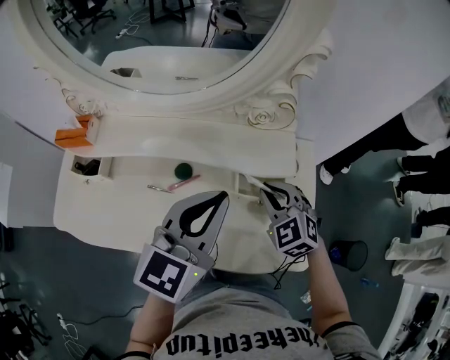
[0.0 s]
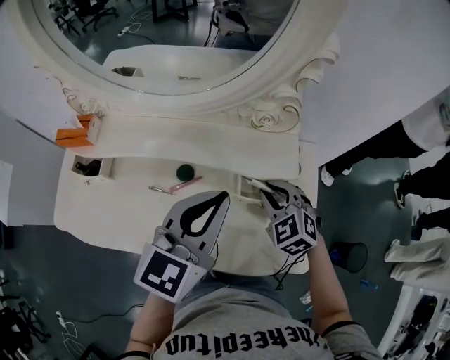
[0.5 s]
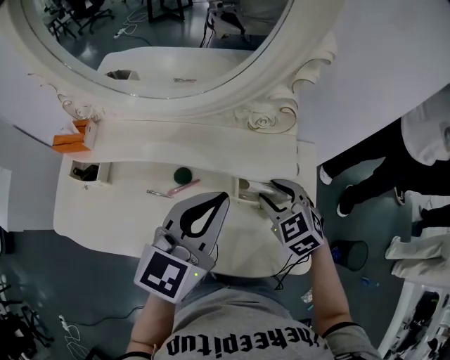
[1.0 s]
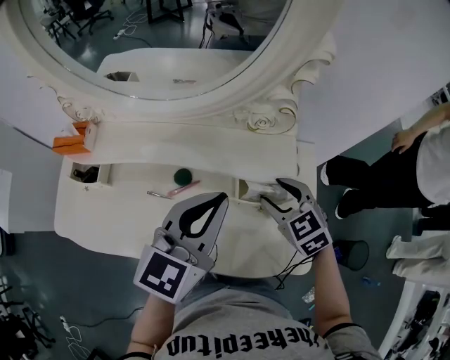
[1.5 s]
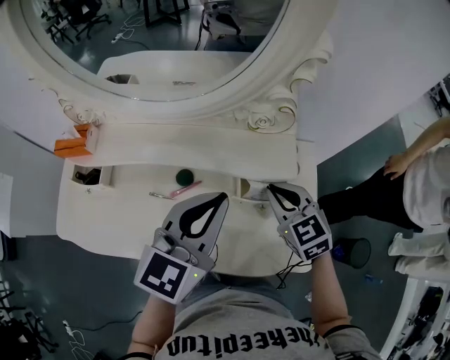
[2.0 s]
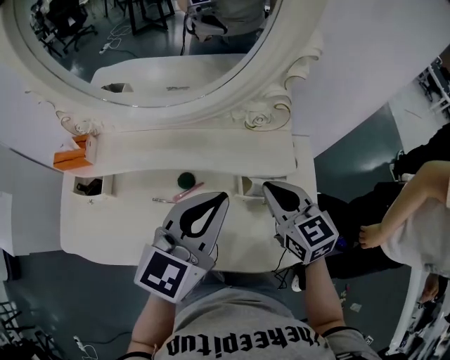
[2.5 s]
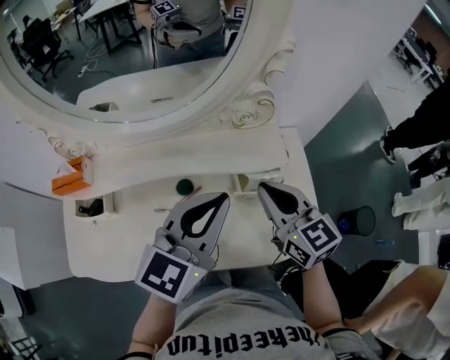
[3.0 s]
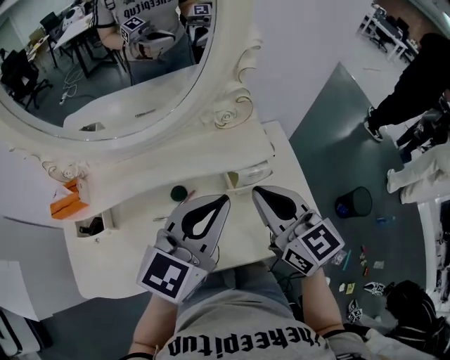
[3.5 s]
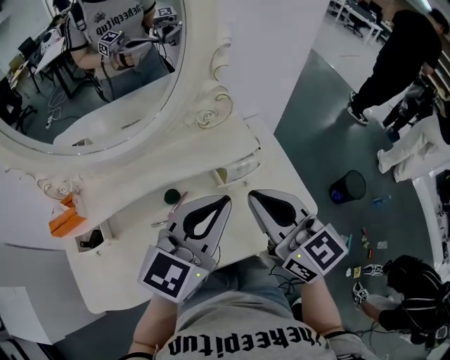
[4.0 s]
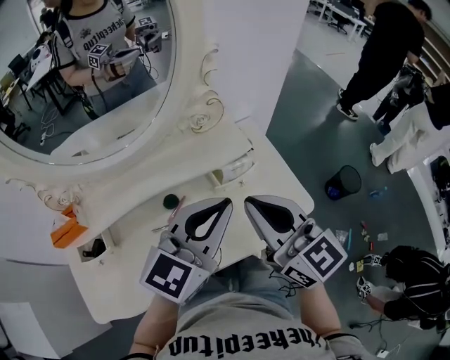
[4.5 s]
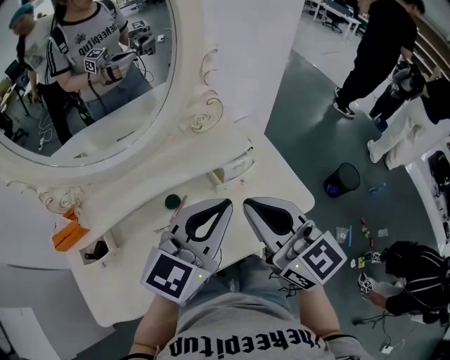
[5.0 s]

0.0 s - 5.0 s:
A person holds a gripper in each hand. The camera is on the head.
0.0 s - 2.5 s: The right gripper is displaced upward by approximately 5 cm, rotates some 40 degrees, and opens and closes again.
2.5 s - 5.0 s: The left gripper shifts by about 10 cm, and turns by about 30 degrees. Meanwhile the right gripper changes place by about 20 cm, and swivels some 30 degrees.

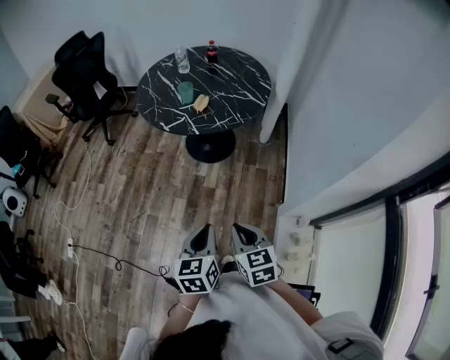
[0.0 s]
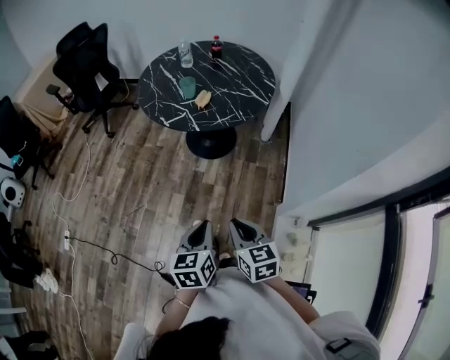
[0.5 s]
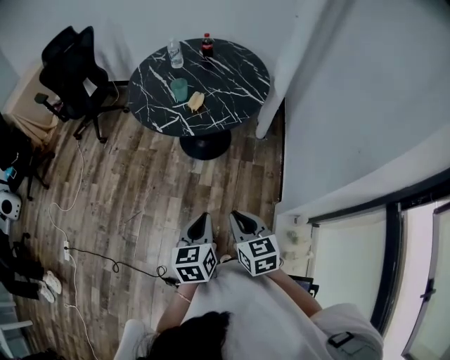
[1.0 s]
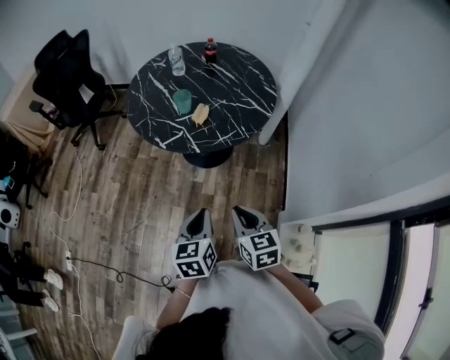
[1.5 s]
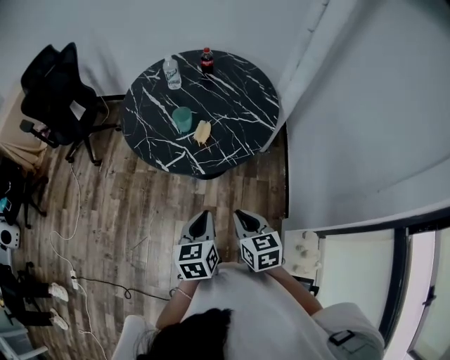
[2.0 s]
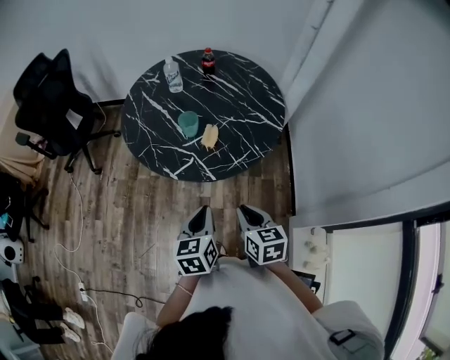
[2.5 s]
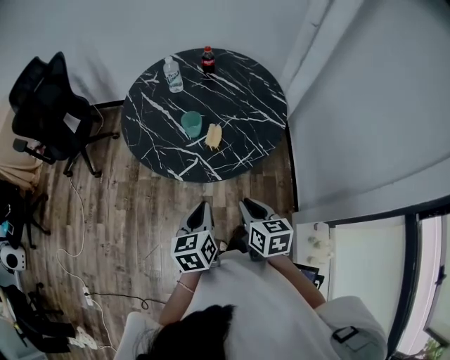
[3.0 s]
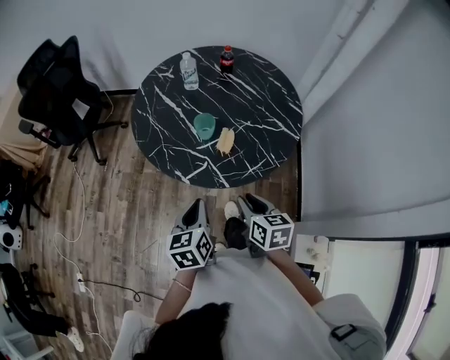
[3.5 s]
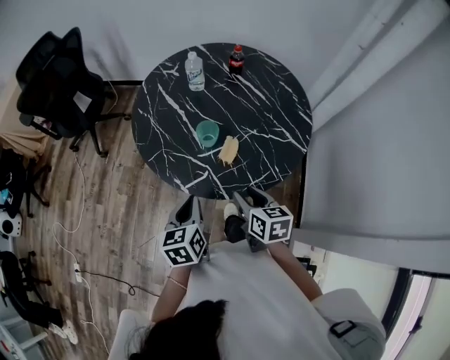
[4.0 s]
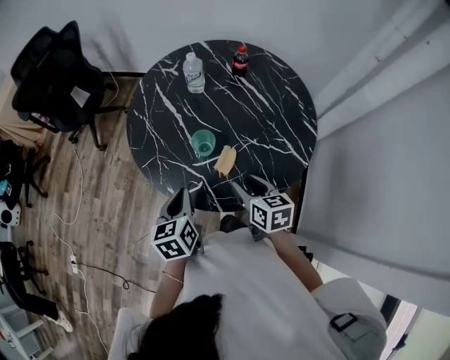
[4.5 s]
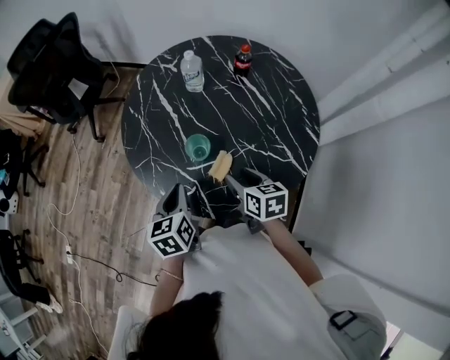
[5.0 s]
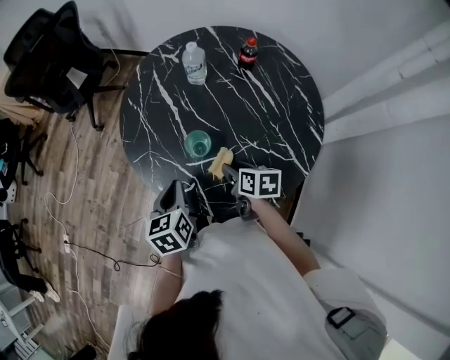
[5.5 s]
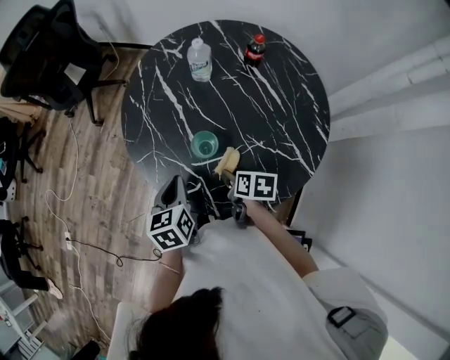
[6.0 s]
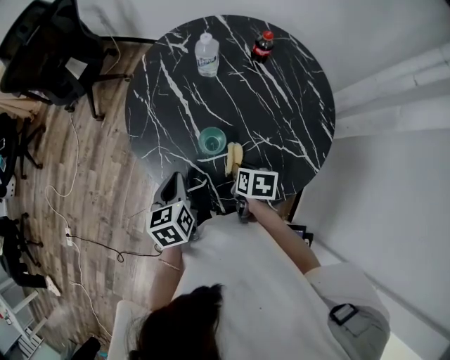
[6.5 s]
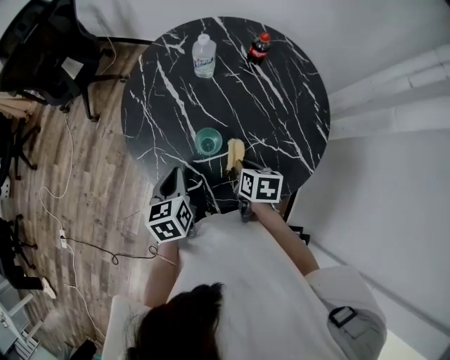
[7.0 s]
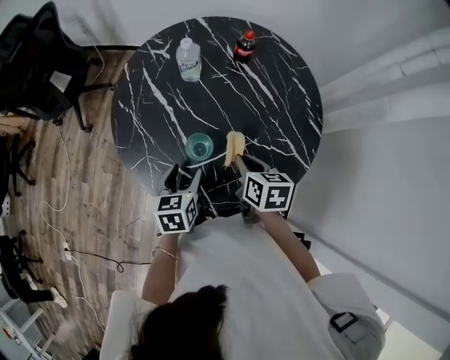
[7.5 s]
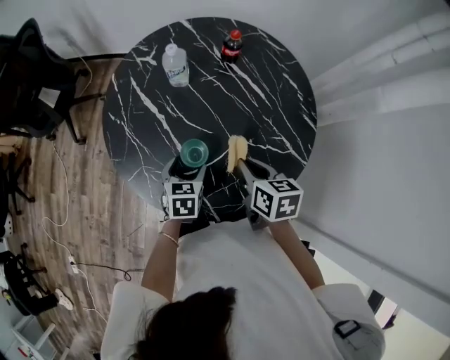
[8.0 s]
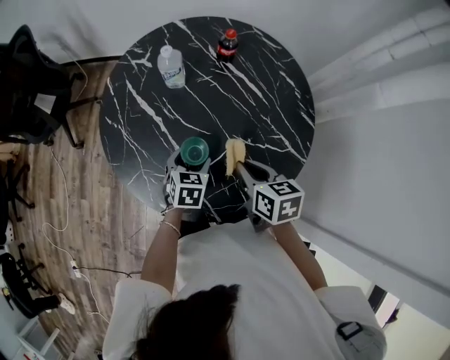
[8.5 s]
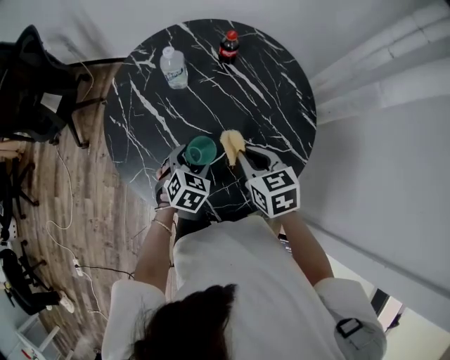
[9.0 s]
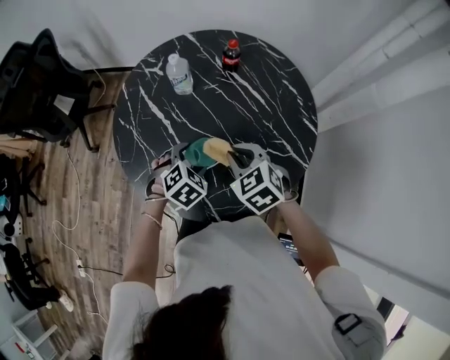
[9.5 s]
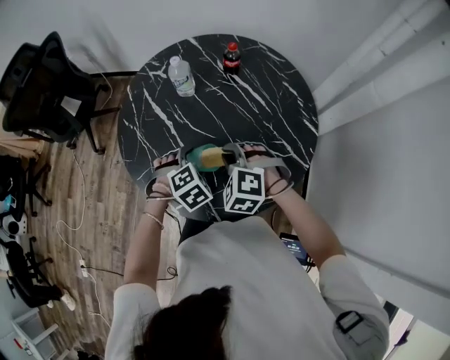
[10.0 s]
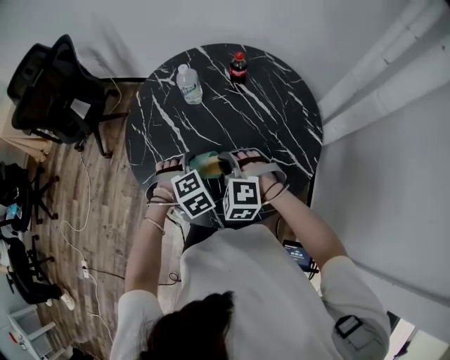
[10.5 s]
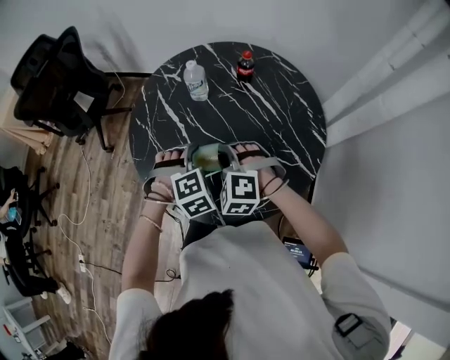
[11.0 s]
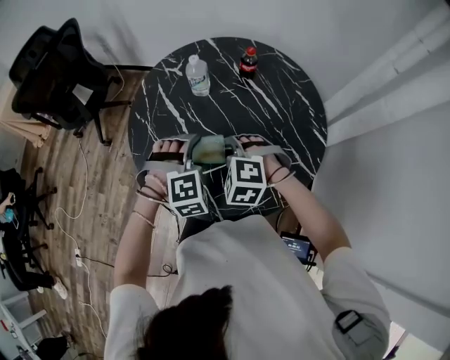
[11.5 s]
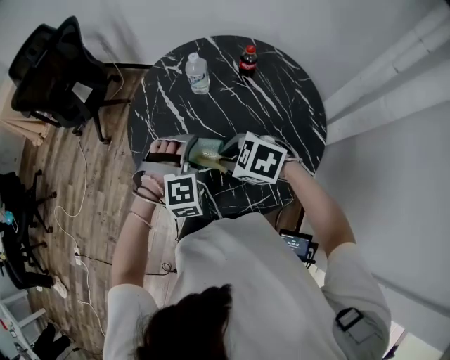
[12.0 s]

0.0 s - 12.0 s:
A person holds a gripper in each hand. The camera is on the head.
0.0 s - 2.0 s: Both grippers move forward, about 25 cm.
2.0 s - 4.0 s: The right gripper travels forward by approximately 20 cm, and opens up. The left gripper moves forward and to the left, approximately 20 cm.
4.0 s - 6.0 s: The left gripper goes some 10 cm forward. Meanwhile the right gripper moves forward and downward, about 15 cm, and changes its angle by roughly 30 degrees.
6.0 s - 8.0 s: The left gripper travels downward, to the right and forward by about 15 cm, turns by about 30 degrees, and opens. The right gripper travels upward by some 10 cm, changes its angle by about 20 degrees, and closes its fingers.
8.0 s - 10.0 s: The right gripper ends up some 5 cm from where it was, and twists approximately 80 degrees counterclockwise, seen from behind. The left gripper rolls clockwise, seen from behind, by some 50 degrees.
10.0 s - 12.0 s: The left gripper heads upward, covering some 5 cm, and turns by approximately 30 degrees, while the right gripper shifts by about 5 cm, and swivels about 40 degrees.

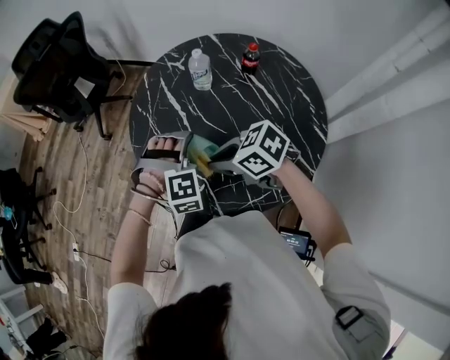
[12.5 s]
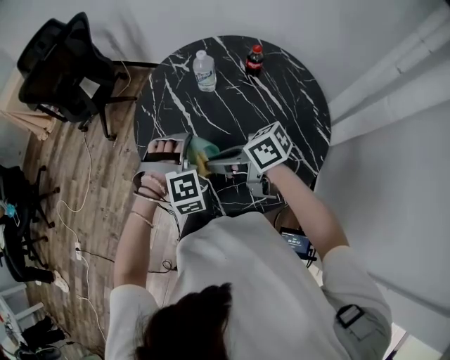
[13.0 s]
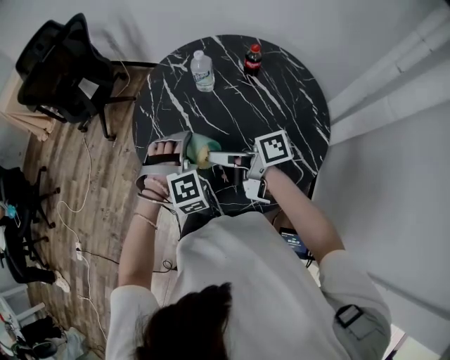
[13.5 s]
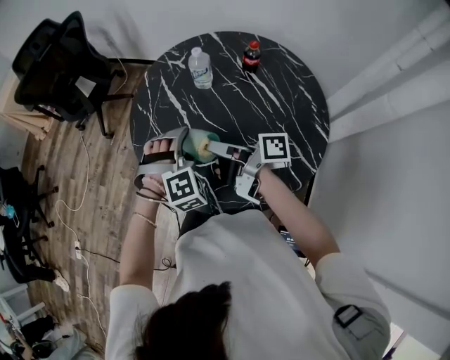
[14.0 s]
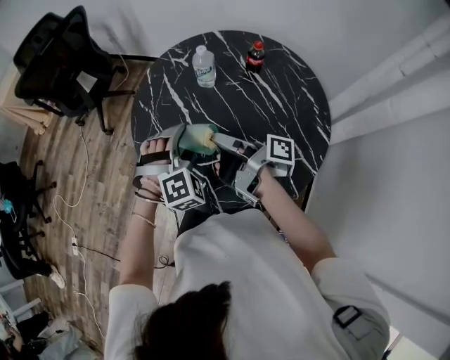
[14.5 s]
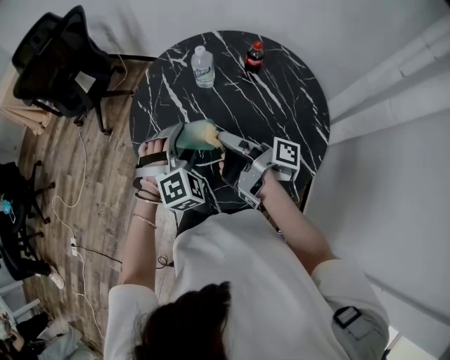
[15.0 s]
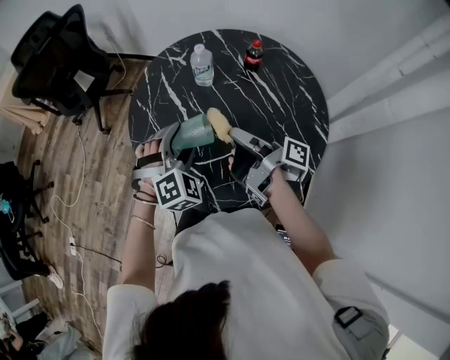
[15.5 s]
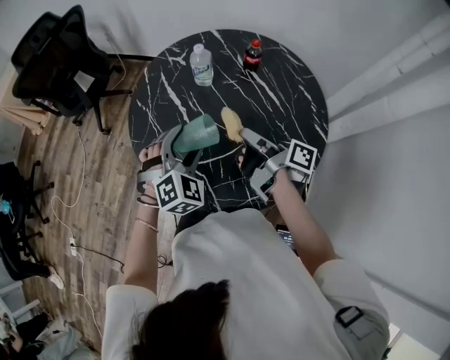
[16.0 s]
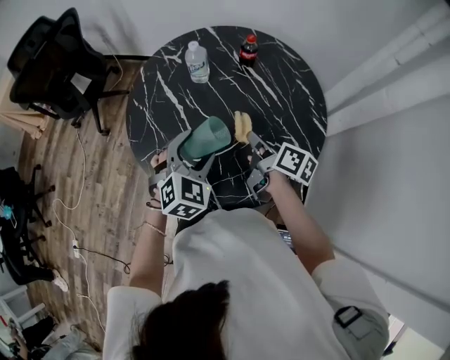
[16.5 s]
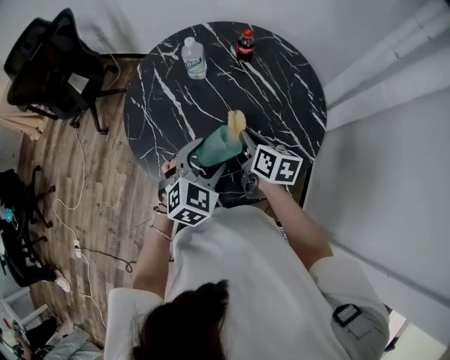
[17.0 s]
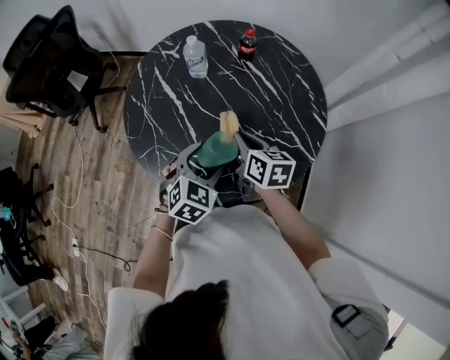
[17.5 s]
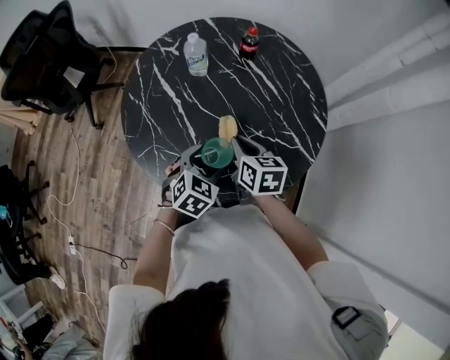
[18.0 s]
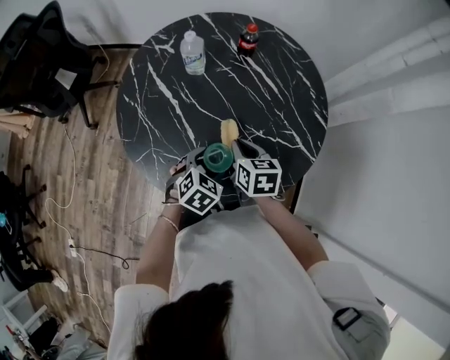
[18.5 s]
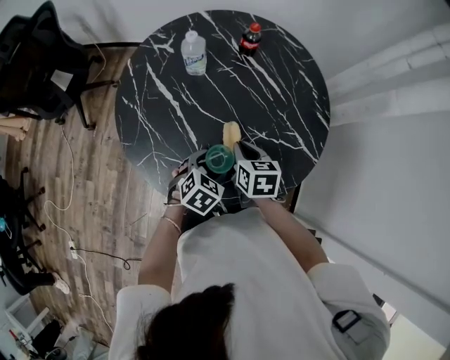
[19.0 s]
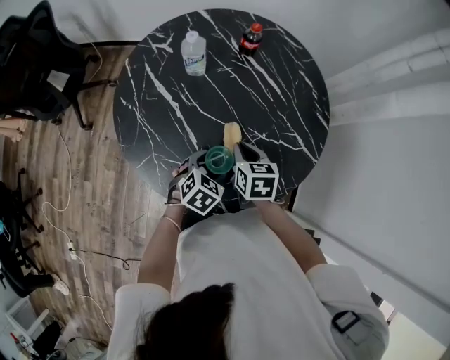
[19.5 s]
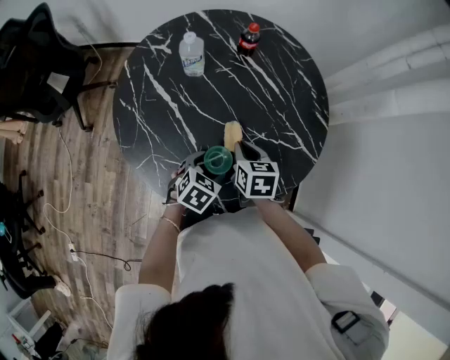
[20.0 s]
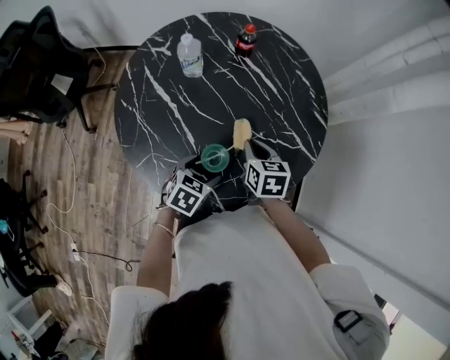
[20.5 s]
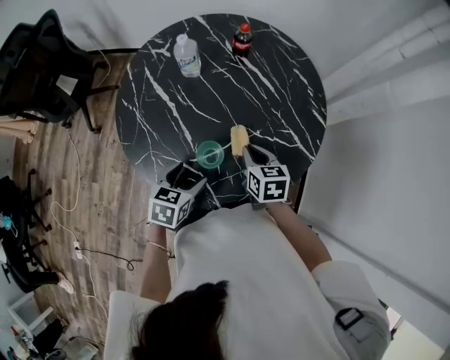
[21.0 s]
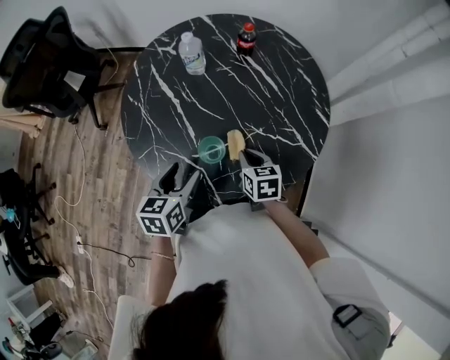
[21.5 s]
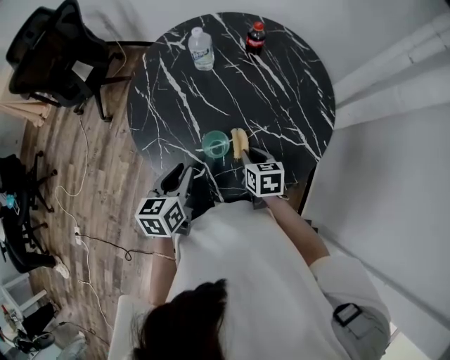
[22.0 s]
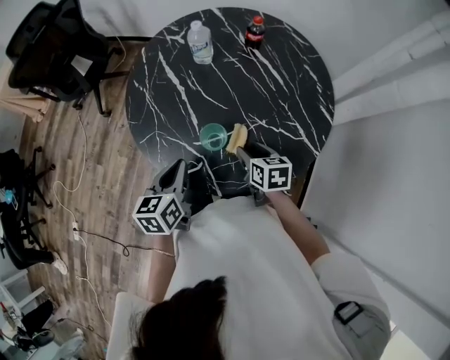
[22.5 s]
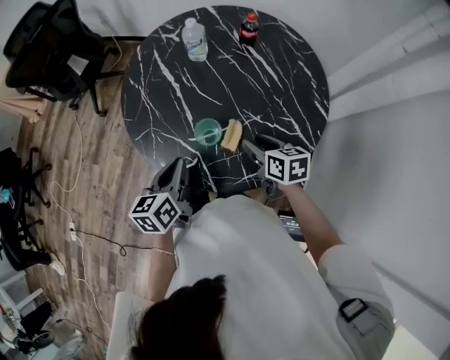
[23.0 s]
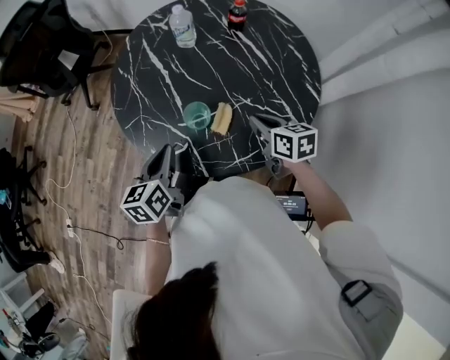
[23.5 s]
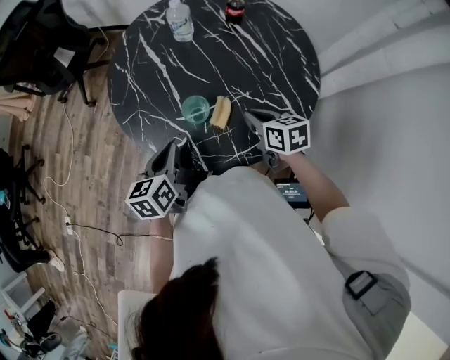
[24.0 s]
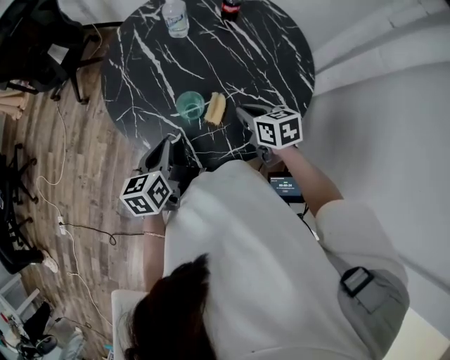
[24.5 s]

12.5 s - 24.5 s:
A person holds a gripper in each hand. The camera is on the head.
12.5 s - 14.5 s: The right gripper moves to the right, some 5 cm, and points its fingers some 40 degrees further upward. Meanwhile the left gripper turns by roughly 20 degrees.
14.5 s - 16.5 s: The right gripper moves to the right and downward, about 15 cm, and turns by approximately 40 degrees. The left gripper changes place by about 5 cm, and swivels some 40 degrees.
16.5 s - 18.5 s: The right gripper shifts approximately 5 cm downward, and rotates about 40 degrees; the left gripper is displaced downward by approximately 15 cm, and changes its angle by approximately 30 degrees.
18.5 s - 20.5 s: The grippers make only small movements.
20.5 s - 22.5 s: The left gripper is displaced upward by roughly 10 cm, changes its angle by roughly 50 degrees, and closes its fingers. The right gripper changes place by approximately 5 cm, and opens up.
22.5 s - 24.5 s: The right gripper changes place by some 5 cm, and closes.
